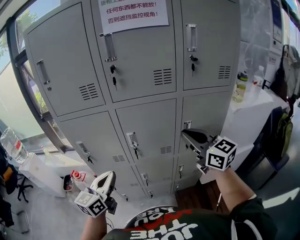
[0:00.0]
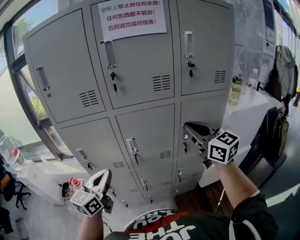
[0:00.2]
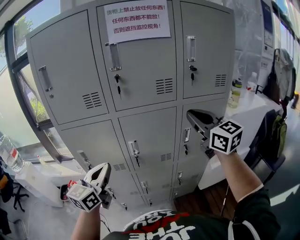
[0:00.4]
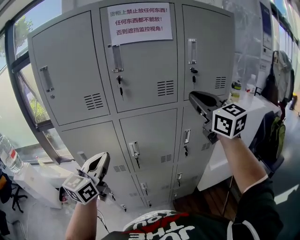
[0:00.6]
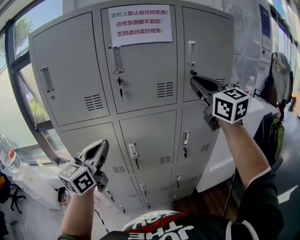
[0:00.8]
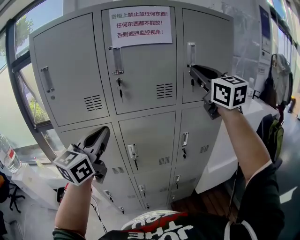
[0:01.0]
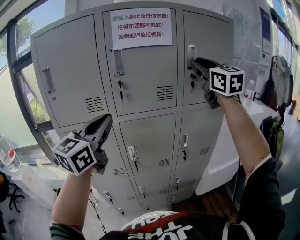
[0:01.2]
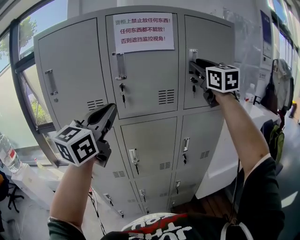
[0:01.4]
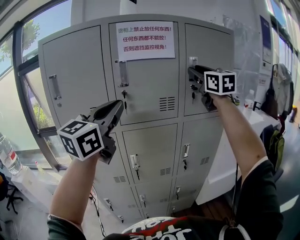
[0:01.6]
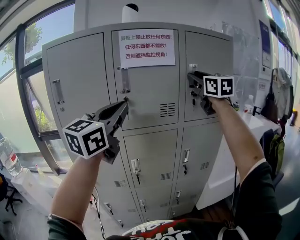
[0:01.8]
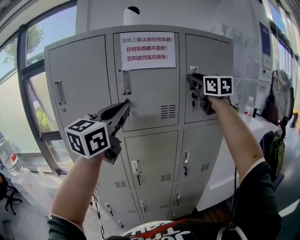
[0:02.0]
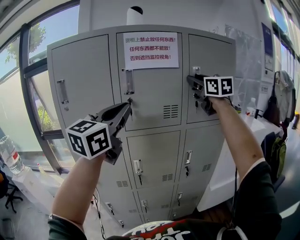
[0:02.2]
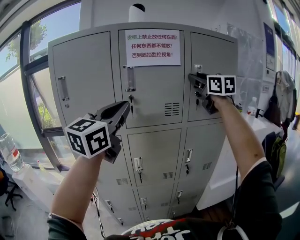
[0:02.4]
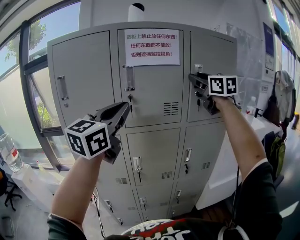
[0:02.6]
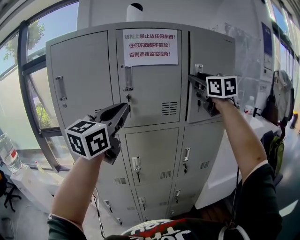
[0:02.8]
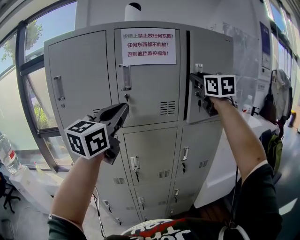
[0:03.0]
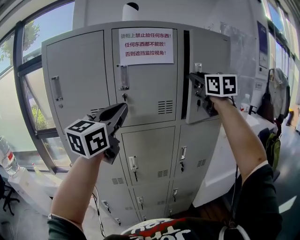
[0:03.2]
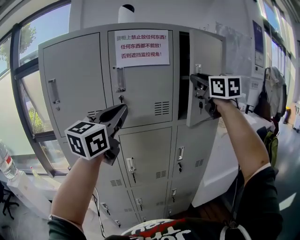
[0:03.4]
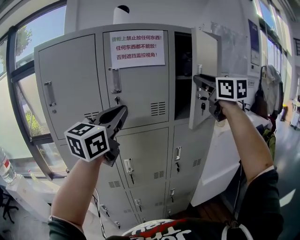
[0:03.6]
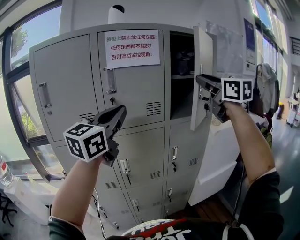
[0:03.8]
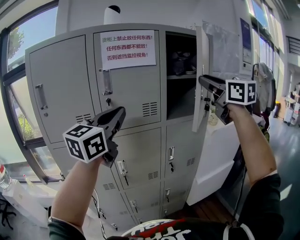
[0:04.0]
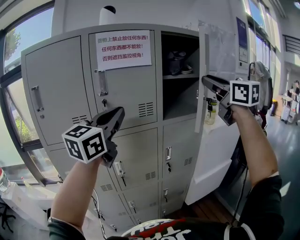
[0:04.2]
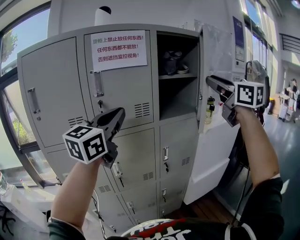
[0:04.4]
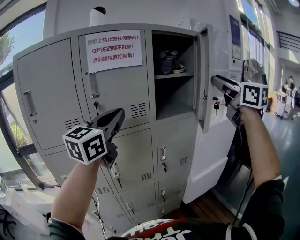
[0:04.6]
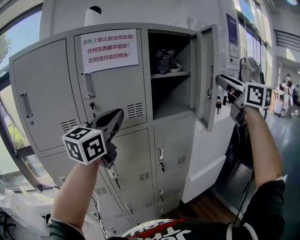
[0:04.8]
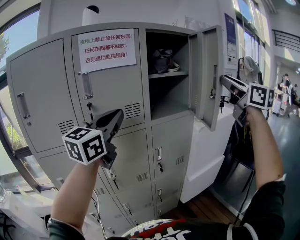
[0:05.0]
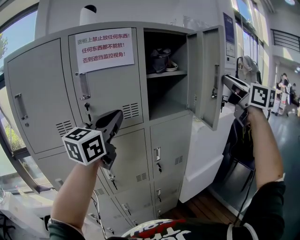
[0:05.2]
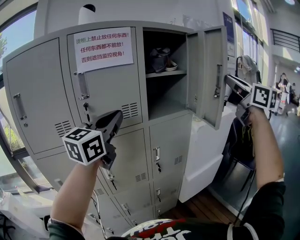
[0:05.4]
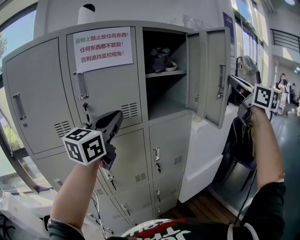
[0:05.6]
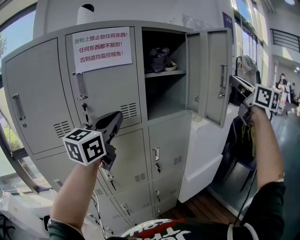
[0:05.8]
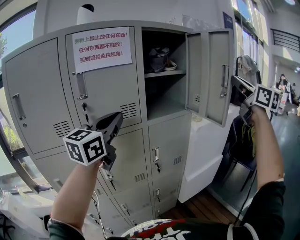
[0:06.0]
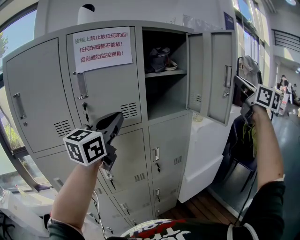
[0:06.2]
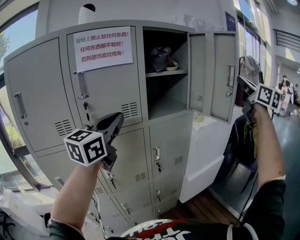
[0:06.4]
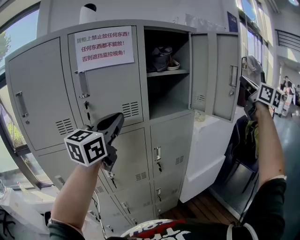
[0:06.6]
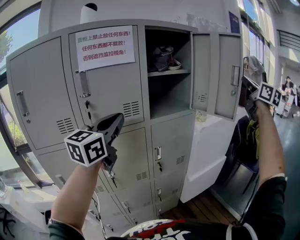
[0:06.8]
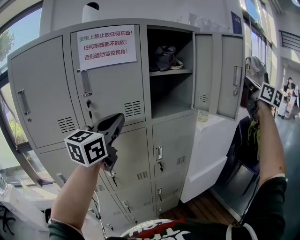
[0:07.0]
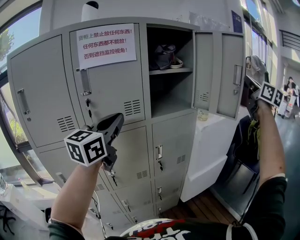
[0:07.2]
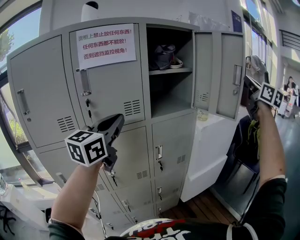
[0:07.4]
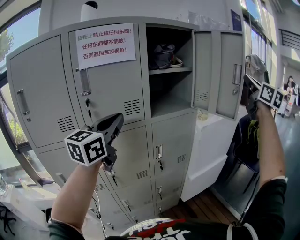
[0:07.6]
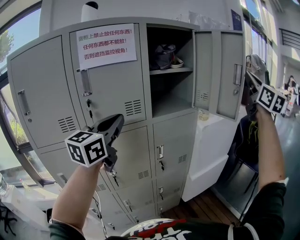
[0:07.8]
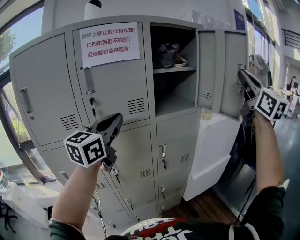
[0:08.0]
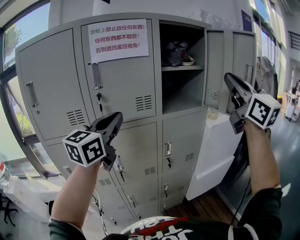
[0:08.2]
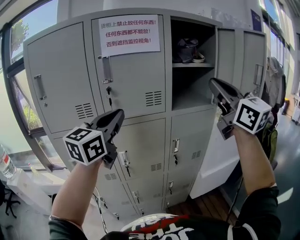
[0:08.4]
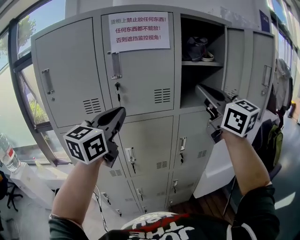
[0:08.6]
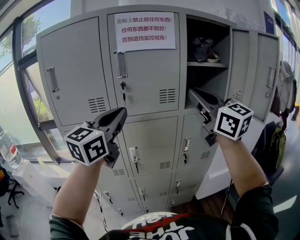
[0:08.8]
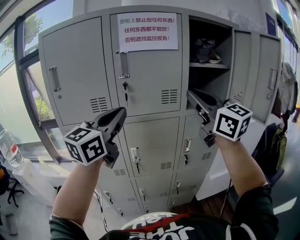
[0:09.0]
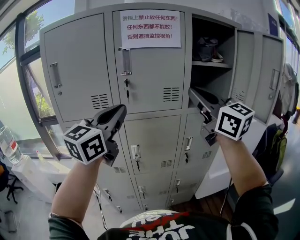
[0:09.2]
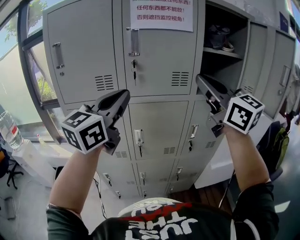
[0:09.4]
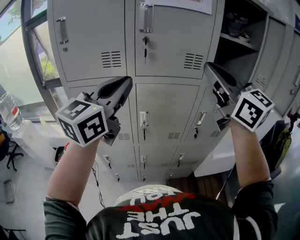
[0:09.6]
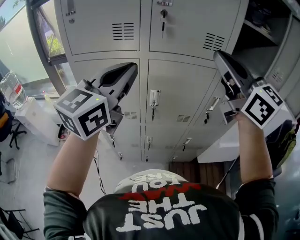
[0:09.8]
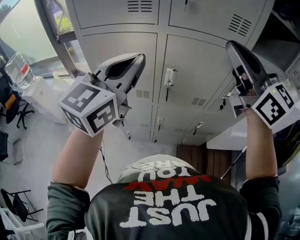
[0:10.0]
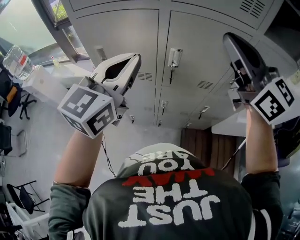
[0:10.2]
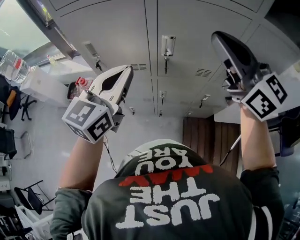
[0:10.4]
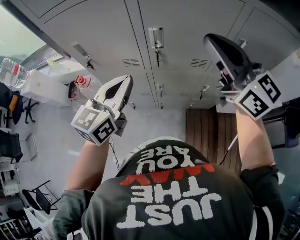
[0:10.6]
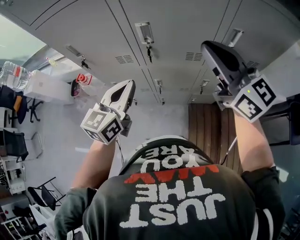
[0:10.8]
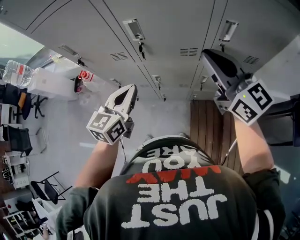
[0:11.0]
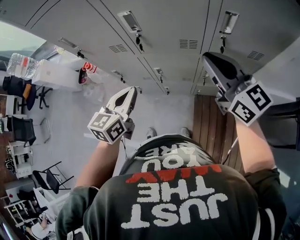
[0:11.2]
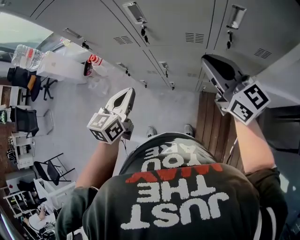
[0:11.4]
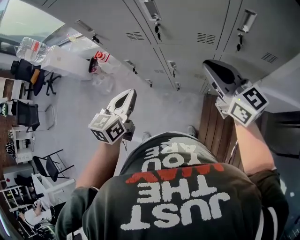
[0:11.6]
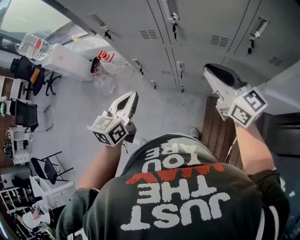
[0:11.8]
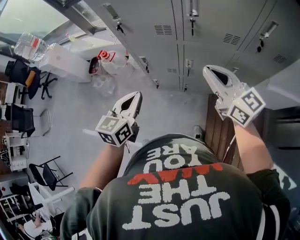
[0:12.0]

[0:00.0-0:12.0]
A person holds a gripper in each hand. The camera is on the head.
0:00.0 to 0:01.6: The right gripper travels upward and forward by approximately 35 cm, rotates about 30 degrees, and opens its fingers. The left gripper heads upward, covering some 35 cm, and swivels about 30 degrees.
0:01.6 to 0:03.0: The grippers stay close to where they were, moving slightly.
0:03.0 to 0:04.4: The right gripper moves to the right and backward, approximately 20 cm, while the left gripper goes about 5 cm to the right.
0:04.4 to 0:06.0: The right gripper travels to the right by roughly 15 cm. Meanwhile the left gripper ends up some 5 cm from where it was.
0:06.0 to 0:07.6: The right gripper travels to the right and forward by approximately 10 cm.
0:07.6 to 0:09.0: The right gripper moves approximately 40 cm, and rotates some 40 degrees. The left gripper moves approximately 10 cm.
0:09.0 to 0:10.4: The left gripper heads downward, covering about 25 cm, and changes its angle by approximately 20 degrees, while the right gripper moves downward and to the left, roughly 20 cm.
0:10.4 to 0:12.0: The right gripper shifts about 25 cm downward. The left gripper goes approximately 30 cm downward, backward and to the left, and rotates some 20 degrees.

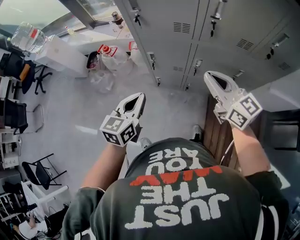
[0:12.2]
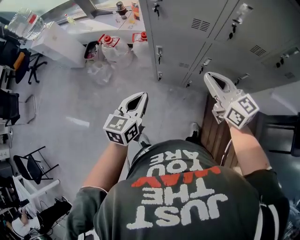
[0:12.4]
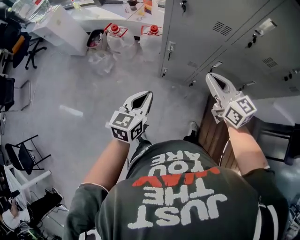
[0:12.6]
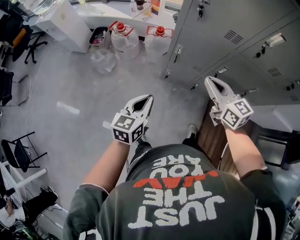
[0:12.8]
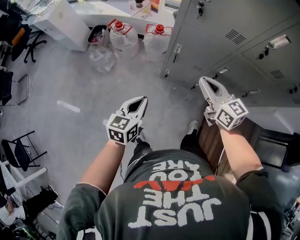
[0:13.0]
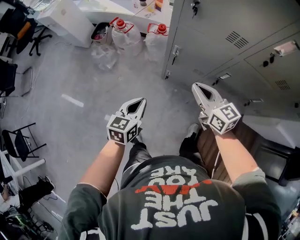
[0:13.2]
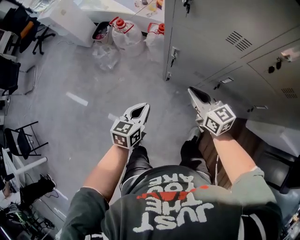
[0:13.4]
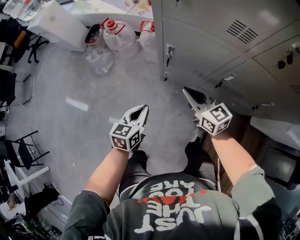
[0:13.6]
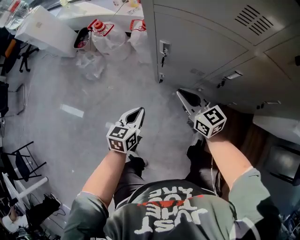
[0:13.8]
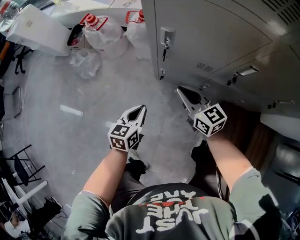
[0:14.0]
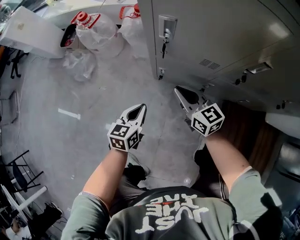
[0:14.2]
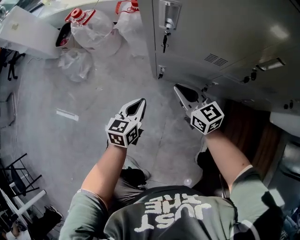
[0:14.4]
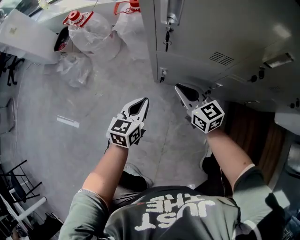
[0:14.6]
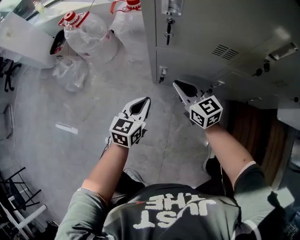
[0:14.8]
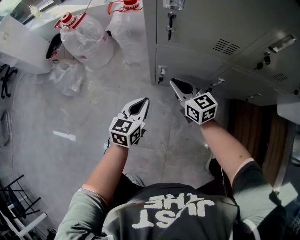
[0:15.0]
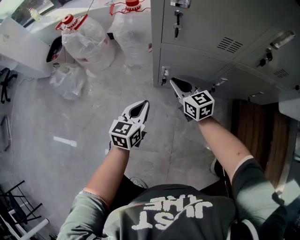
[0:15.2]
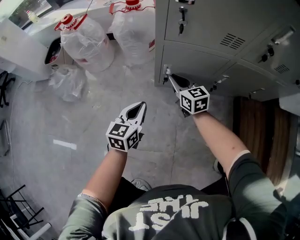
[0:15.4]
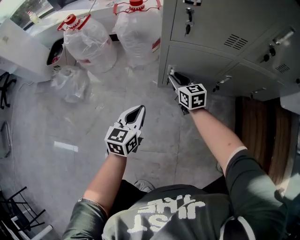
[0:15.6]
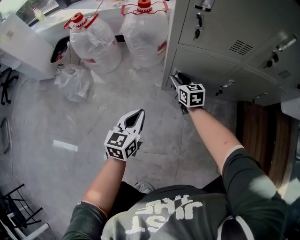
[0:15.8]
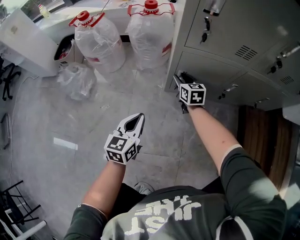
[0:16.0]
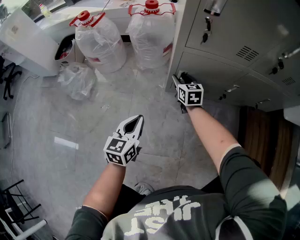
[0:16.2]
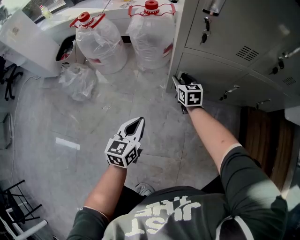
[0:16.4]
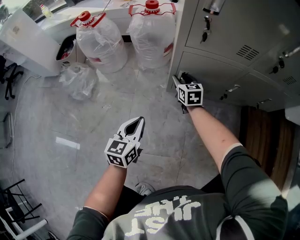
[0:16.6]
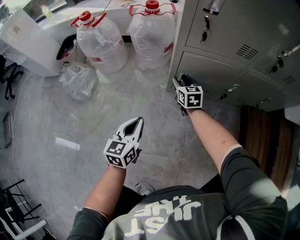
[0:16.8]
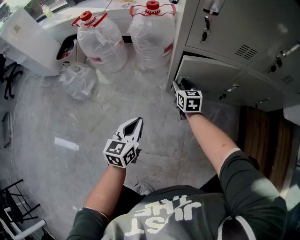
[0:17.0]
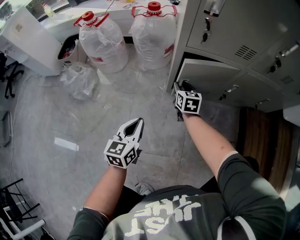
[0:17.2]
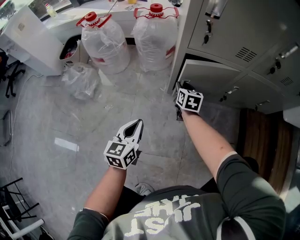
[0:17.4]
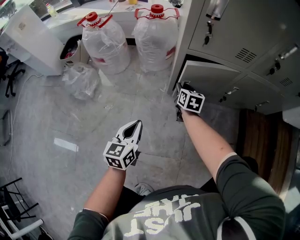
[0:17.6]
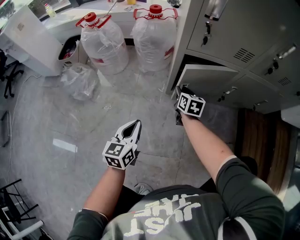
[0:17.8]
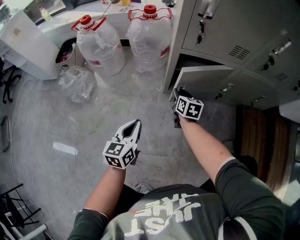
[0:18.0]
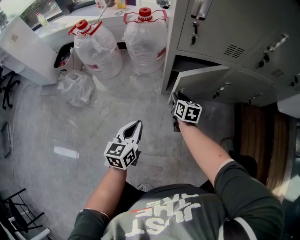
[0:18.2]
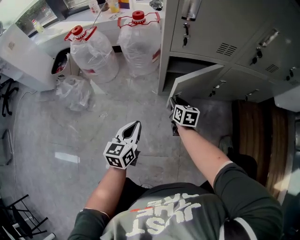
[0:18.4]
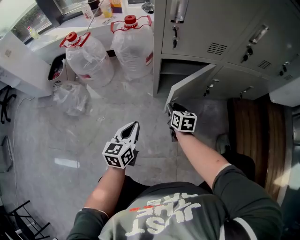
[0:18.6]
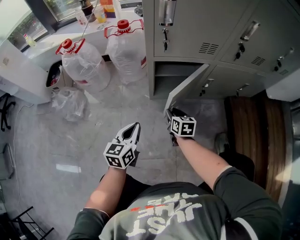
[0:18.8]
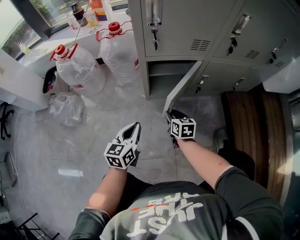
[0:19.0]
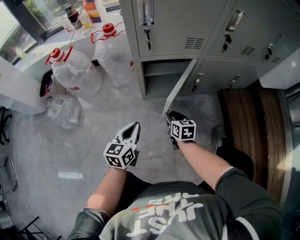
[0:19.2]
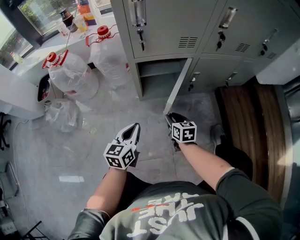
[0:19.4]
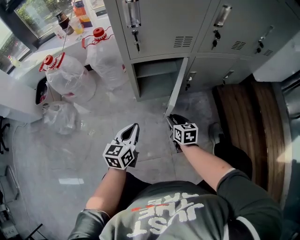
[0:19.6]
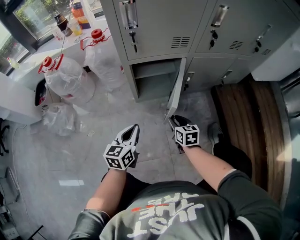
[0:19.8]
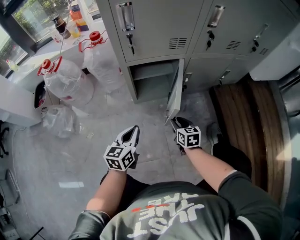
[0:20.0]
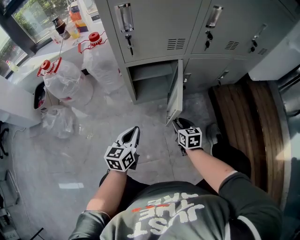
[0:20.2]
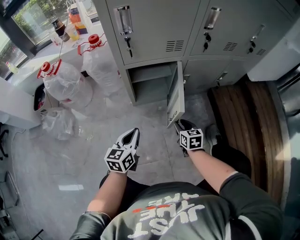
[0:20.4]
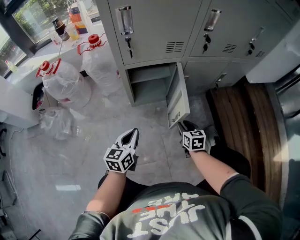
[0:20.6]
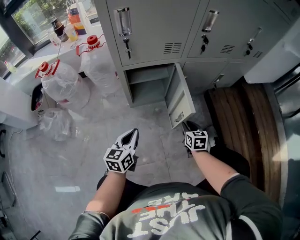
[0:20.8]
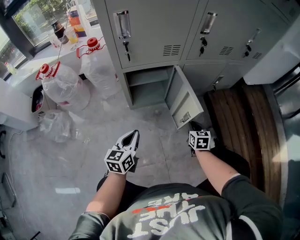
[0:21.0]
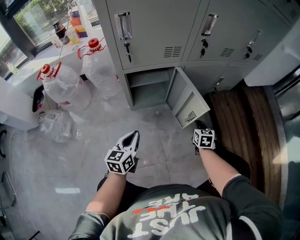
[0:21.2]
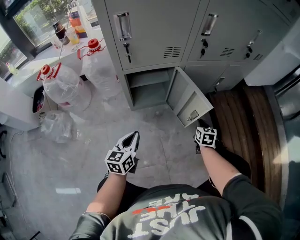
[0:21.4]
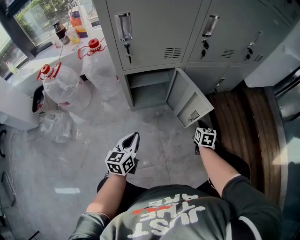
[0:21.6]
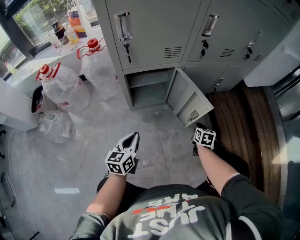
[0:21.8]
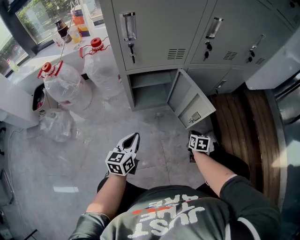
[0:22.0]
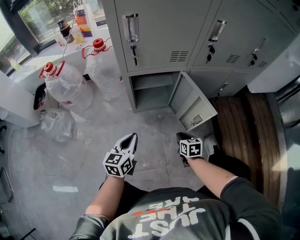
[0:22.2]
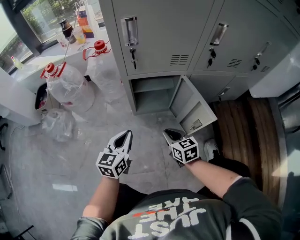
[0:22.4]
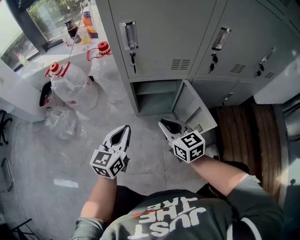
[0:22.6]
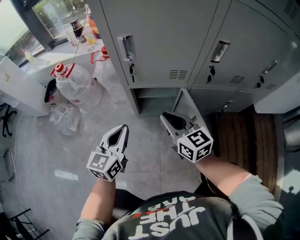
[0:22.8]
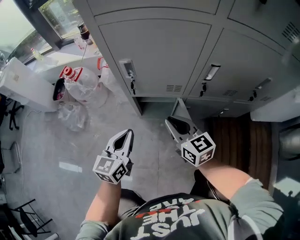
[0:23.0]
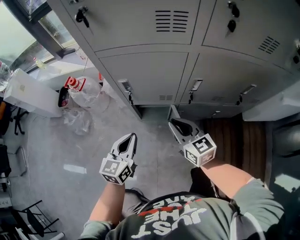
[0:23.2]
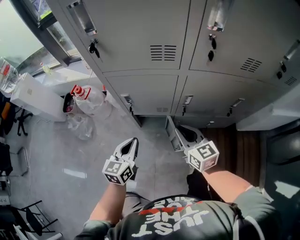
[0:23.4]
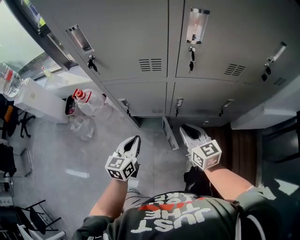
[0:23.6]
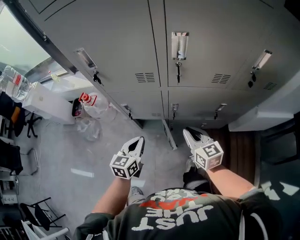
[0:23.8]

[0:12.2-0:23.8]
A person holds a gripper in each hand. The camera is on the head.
0:12.2 to 0:13.6: The right gripper moves downward, to the left and forward, some 35 cm, while the left gripper moves downward, roughly 25 cm.
0:13.6 to 0:15.0: Both grippers travel together downward, some 40 cm.
0:15.0 to 0:16.6: The right gripper goes roughly 15 cm downward, forward and to the left, changes its angle by some 20 degrees, and opens. The left gripper is displaced to the left and backward by approximately 15 cm.
0:16.6 to 0:18.0: The right gripper goes approximately 5 cm backward, and swivels roughly 20 degrees.
0:18.0 to 0:19.4: The right gripper heads backward and to the right, covering about 15 cm. Meanwhile the left gripper goes approximately 10 cm to the right.
0:19.4 to 0:21.0: The right gripper shifts some 20 cm to the right, swivels approximately 20 degrees, and closes.
0:21.0 to 0:22.4: The right gripper moves some 20 cm, and turns by some 30 degrees. Meanwhile the left gripper ends up some 5 cm from where it was.
0:22.4 to 0:23.8: Both grippers move upward and to the right, about 50 cm.
